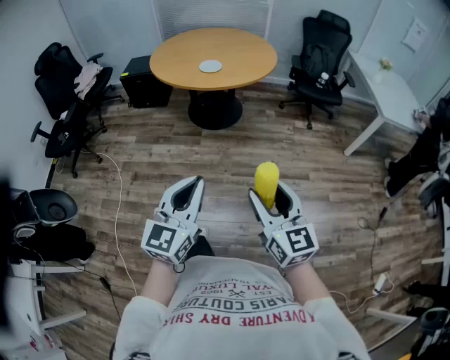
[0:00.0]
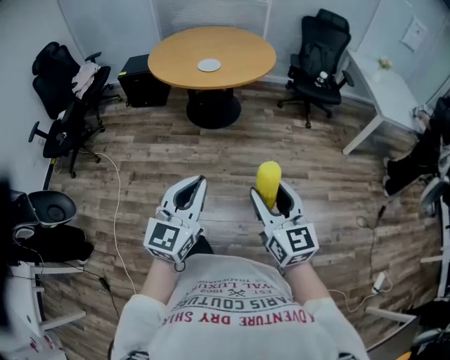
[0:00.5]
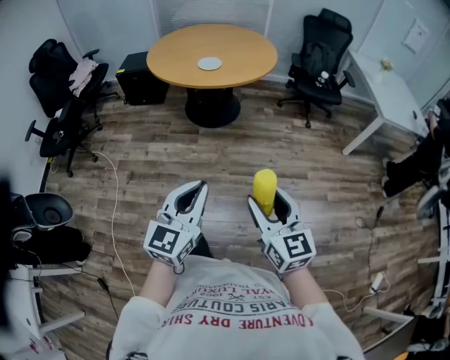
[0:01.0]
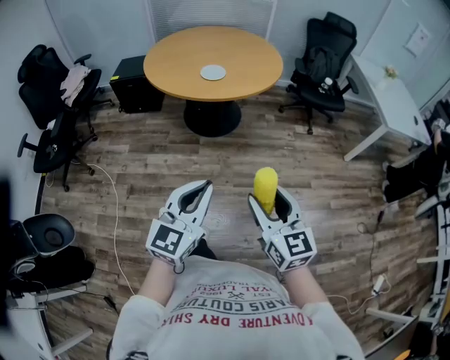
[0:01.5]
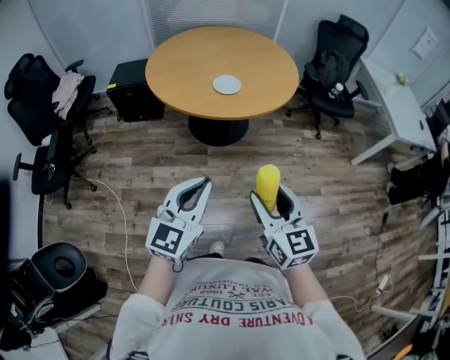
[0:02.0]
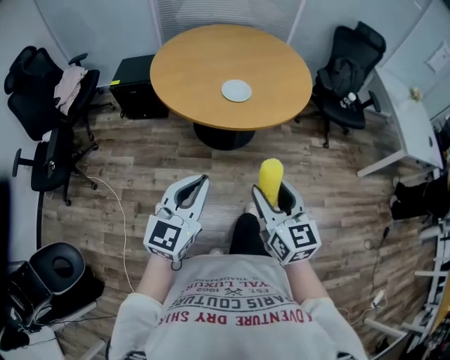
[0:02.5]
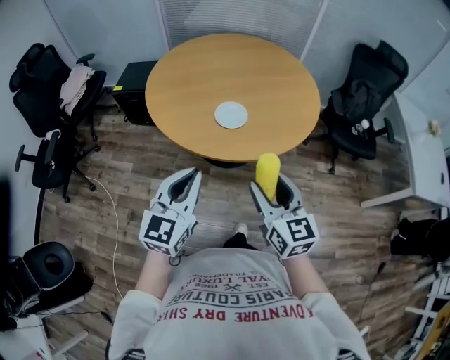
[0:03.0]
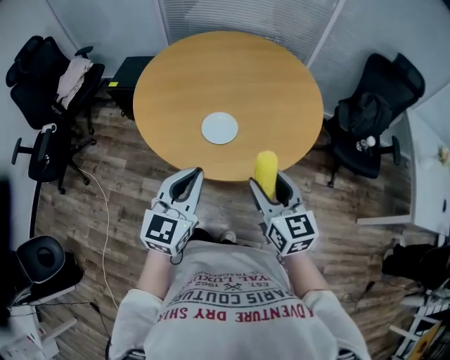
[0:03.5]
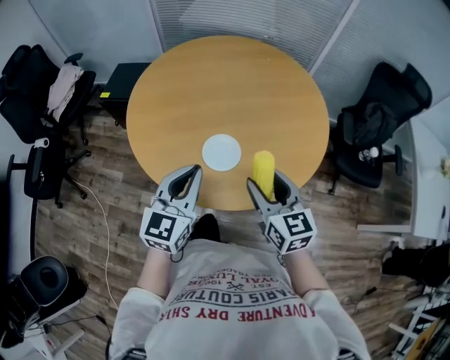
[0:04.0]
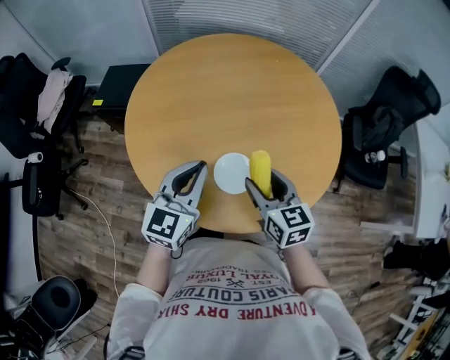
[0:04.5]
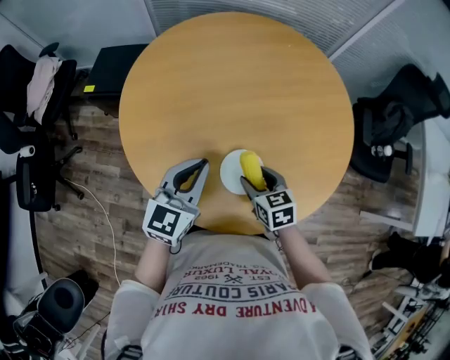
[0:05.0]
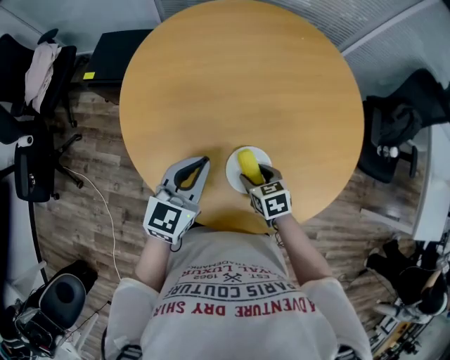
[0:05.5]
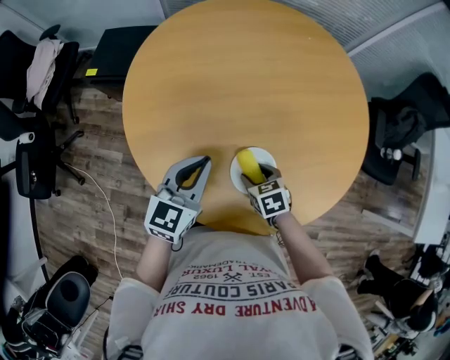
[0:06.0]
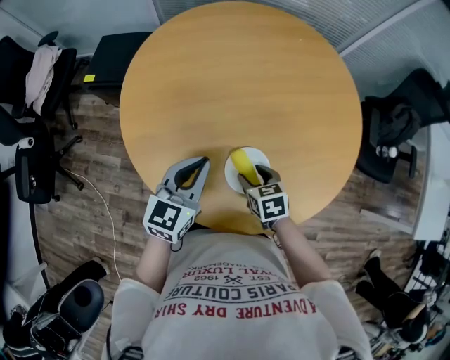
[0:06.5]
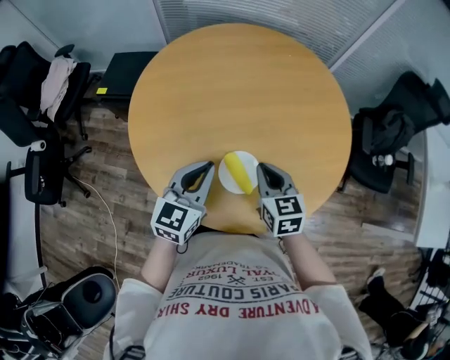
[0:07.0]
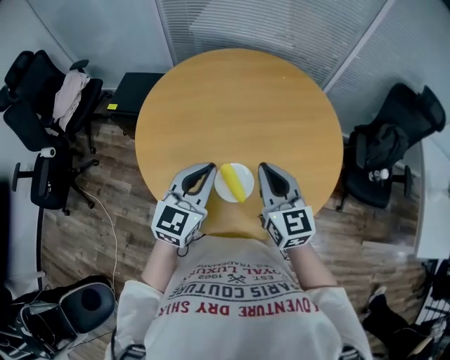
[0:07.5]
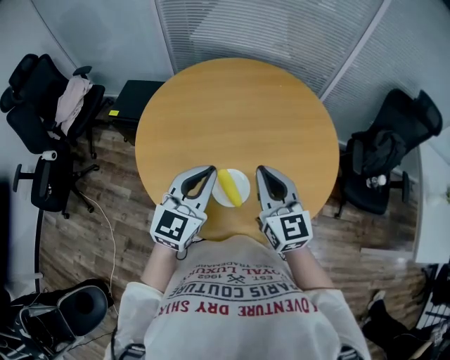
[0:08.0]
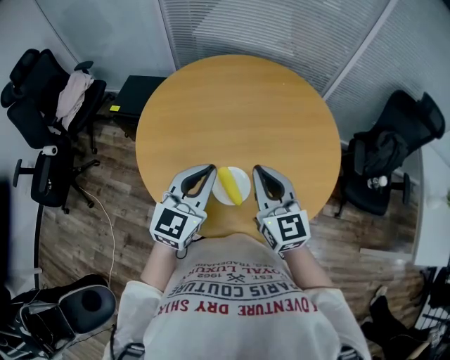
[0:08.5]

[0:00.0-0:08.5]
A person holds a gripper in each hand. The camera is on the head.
0:00.0 to 0:02.0: The two grippers go about 35 cm forward and to the left.
0:02.0 to 0:04.0: The two grippers travel together, forward, about 50 cm.
0:04.0 to 0:06.5: The left gripper is displaced forward and downward by about 20 cm. Meanwhile the right gripper travels downward and forward by about 30 cm, and tips its fingers downward by about 40 degrees.
0:06.5 to 0:08.5: The right gripper goes about 30 cm upward, angles its fingers upward, by some 50 degrees, and closes its fingers. Meanwhile the left gripper goes approximately 15 cm upward and to the right.

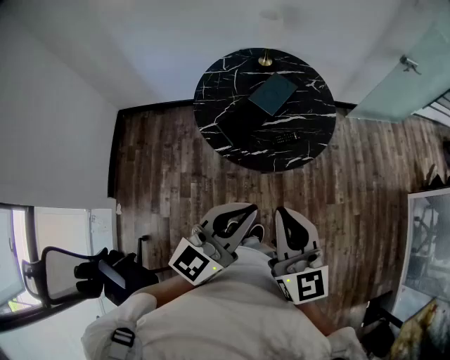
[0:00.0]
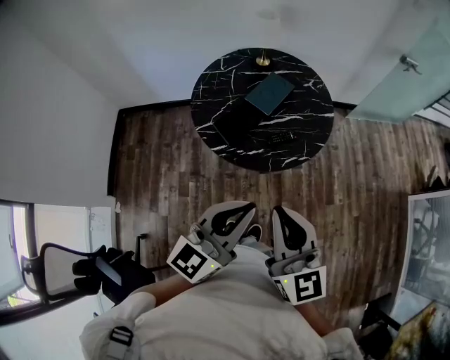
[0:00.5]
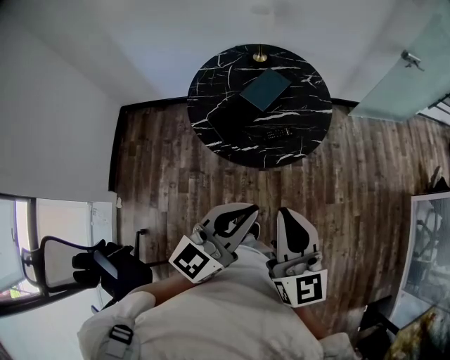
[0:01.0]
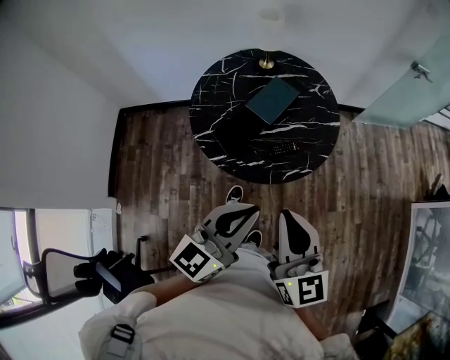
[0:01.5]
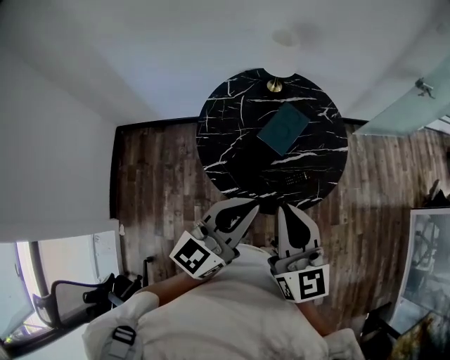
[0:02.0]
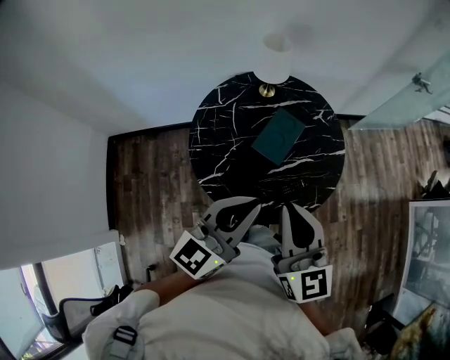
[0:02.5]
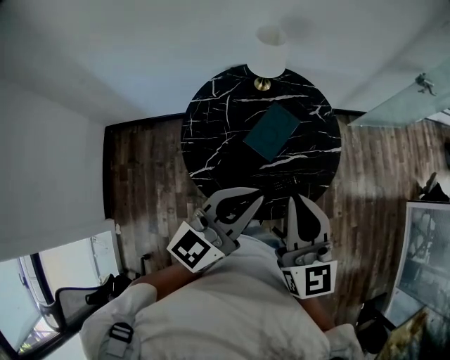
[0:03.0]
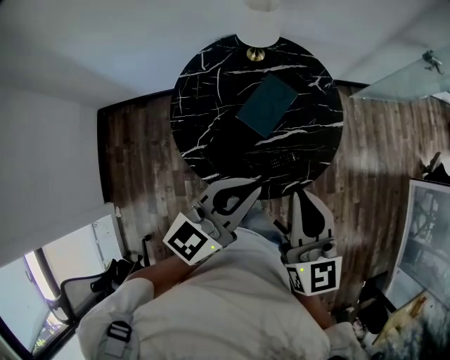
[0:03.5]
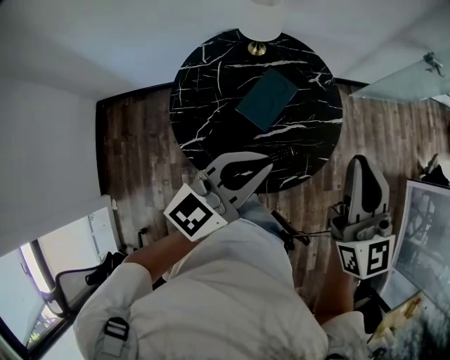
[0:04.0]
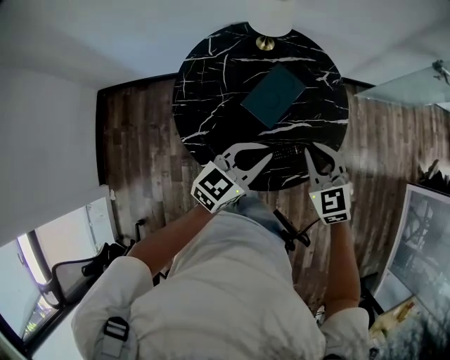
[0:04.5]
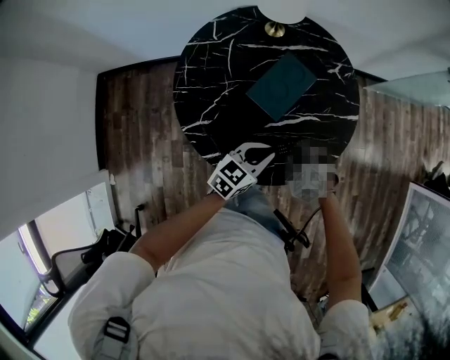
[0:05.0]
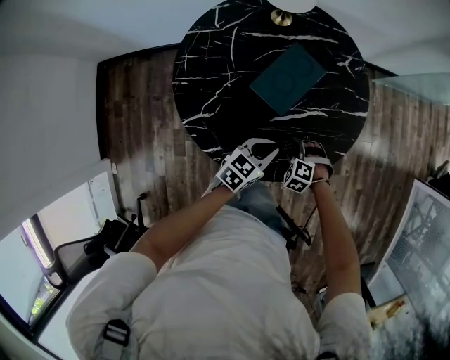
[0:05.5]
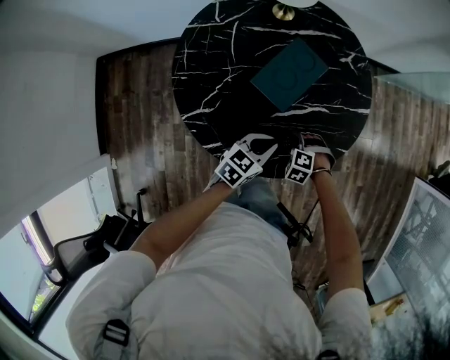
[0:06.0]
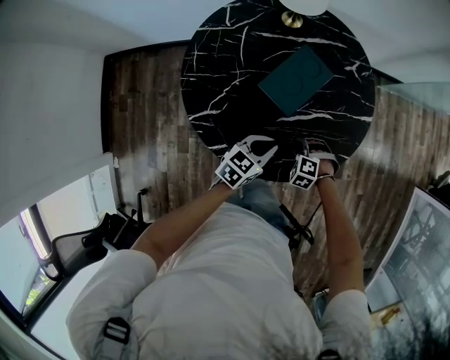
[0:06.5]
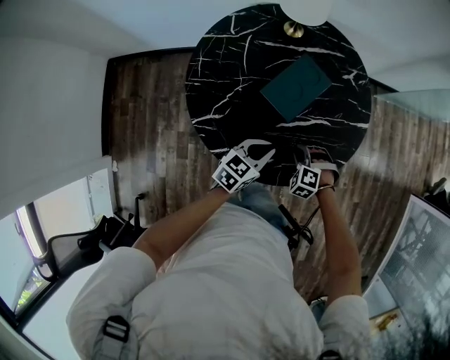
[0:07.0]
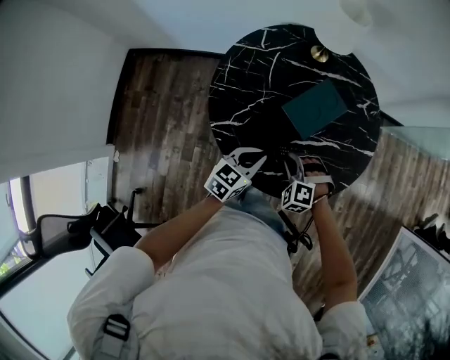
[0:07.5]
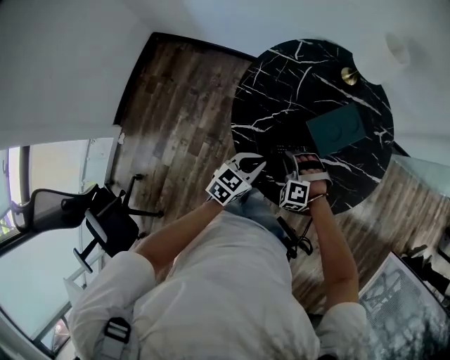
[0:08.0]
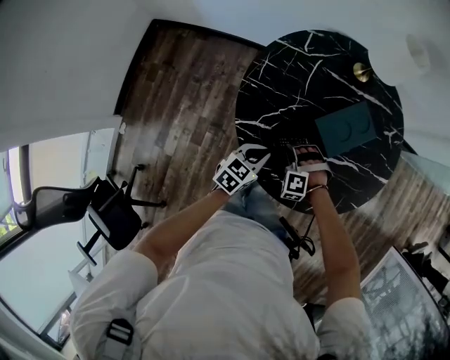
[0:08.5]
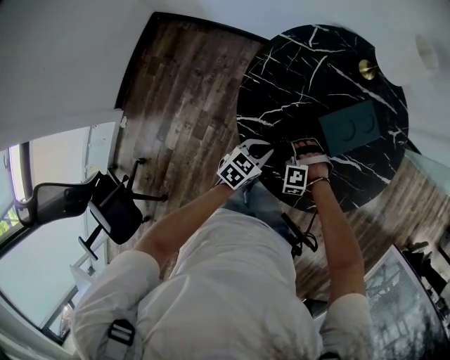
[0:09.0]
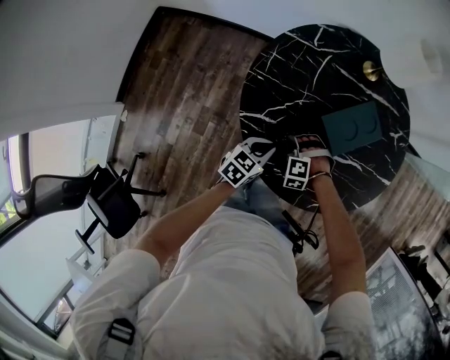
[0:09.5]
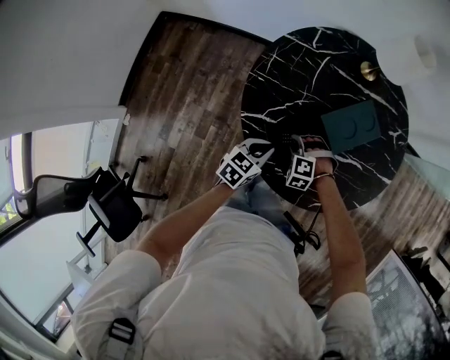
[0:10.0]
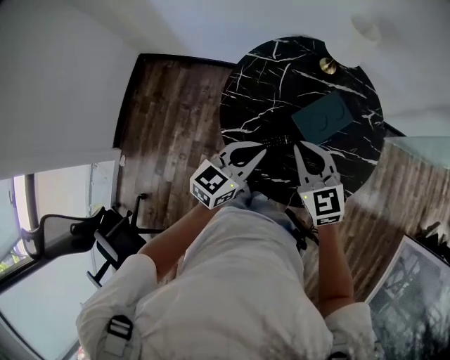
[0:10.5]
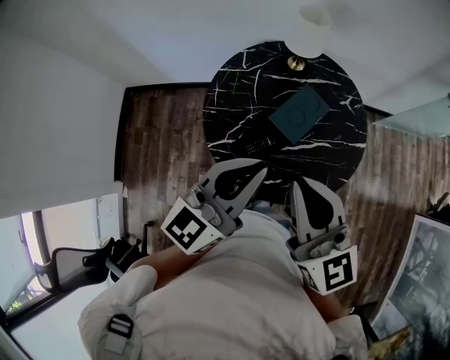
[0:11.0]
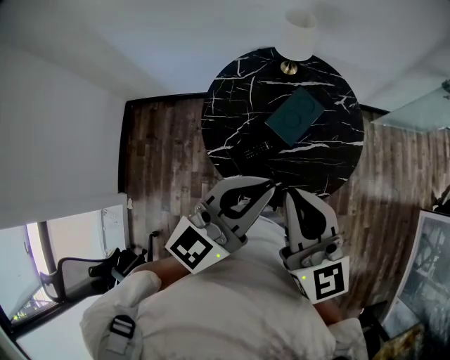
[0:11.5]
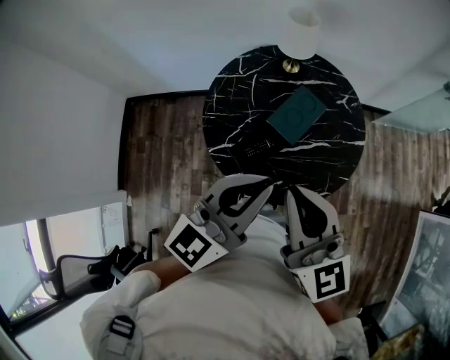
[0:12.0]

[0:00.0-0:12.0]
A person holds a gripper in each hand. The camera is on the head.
0:00.0 to 0:02.0: The grippers both shift forward by about 20 cm.
0:02.0 to 0:04.0: The grippers both shift forward and to the right by some 20 cm.
0:04.0 to 0:06.0: The left gripper moves downward, some 35 cm, and points its fingers approximately 30 degrees further downward, while the right gripper heads downward, covering some 60 cm, tilts its fingers approximately 80 degrees downward, and opens its fingers.
0:06.0 to 0:08.0: The right gripper ends up some 25 cm from where it was, swivels approximately 40 degrees, and closes up. Meanwhile the left gripper moves roughly 20 cm, and changes its angle by roughly 20 degrees.
0:08.0 to 0:10.0: The grippers both shift downward by approximately 5 cm.
0:10.0 to 0:12.0: Both grippers travel together upward, some 50 cm. The left gripper tilts its fingers approximately 40 degrees upward. Meanwhile the right gripper tilts its fingers approximately 70 degrees upward, and closes.

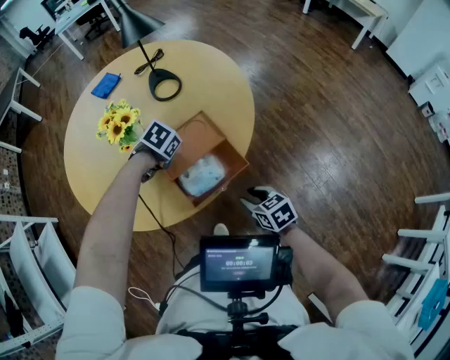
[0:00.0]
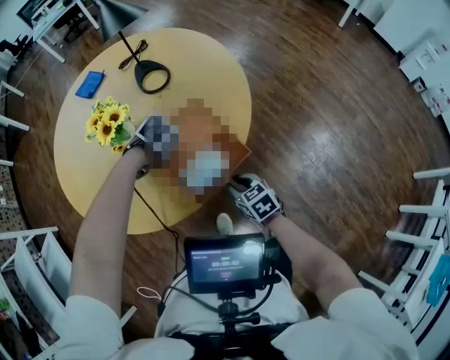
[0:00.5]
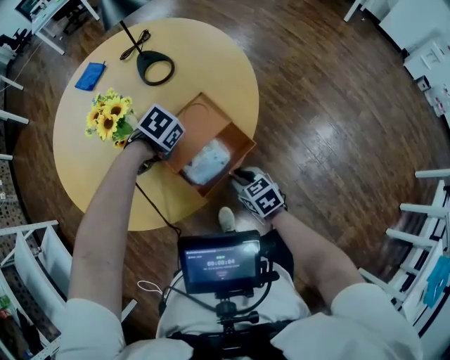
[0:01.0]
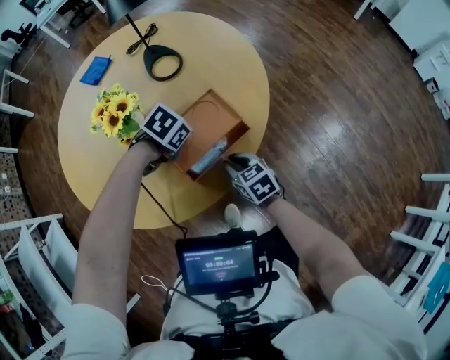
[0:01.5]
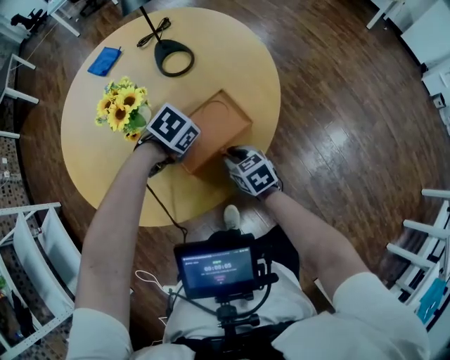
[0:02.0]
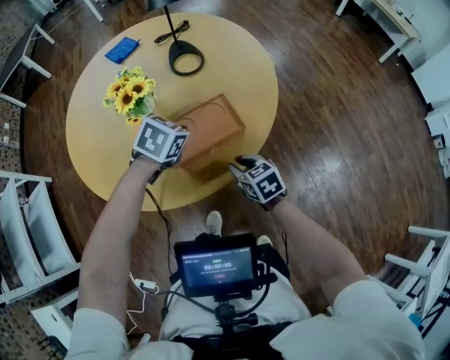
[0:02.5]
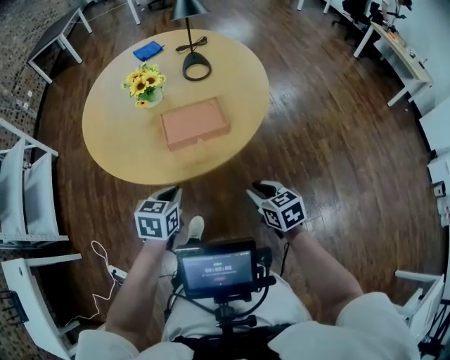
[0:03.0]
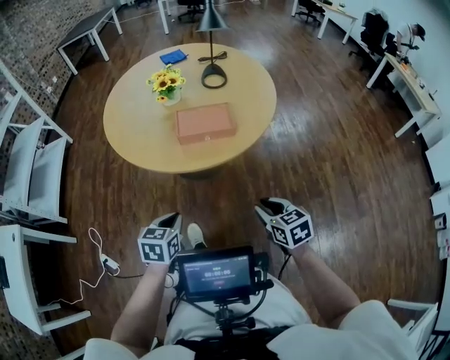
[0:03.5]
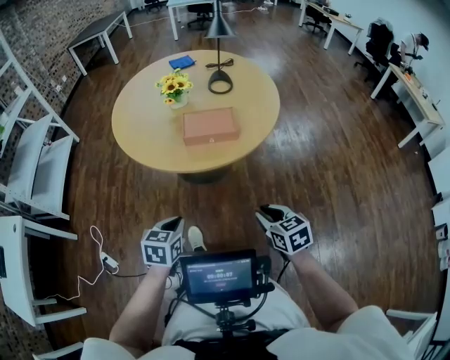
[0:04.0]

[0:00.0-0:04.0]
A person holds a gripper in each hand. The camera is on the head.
0:00.0 to 0:02.0: The right gripper travels to the left and forward by roughly 20 cm.
0:02.0 to 0:04.0: The right gripper shifts by some 40 cm, and swivels approximately 20 degrees; the left gripper moves approximately 40 cm, and angles its fingers upward, by about 30 degrees.

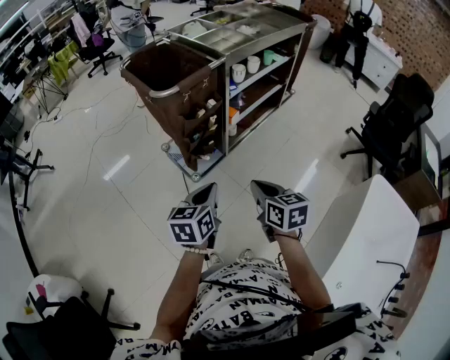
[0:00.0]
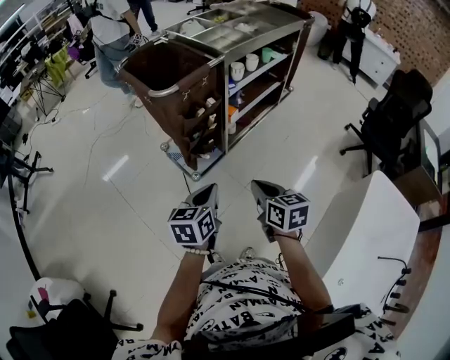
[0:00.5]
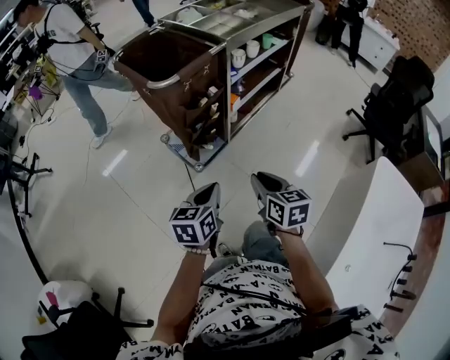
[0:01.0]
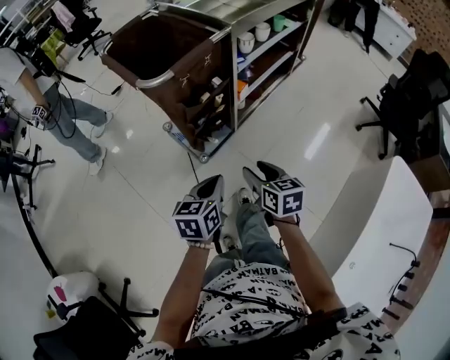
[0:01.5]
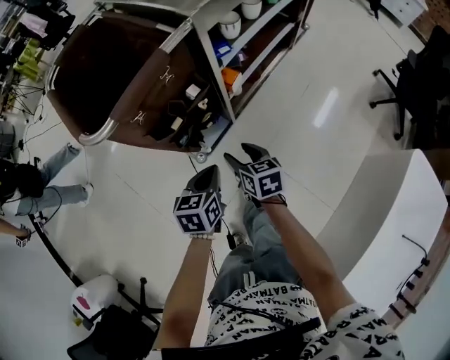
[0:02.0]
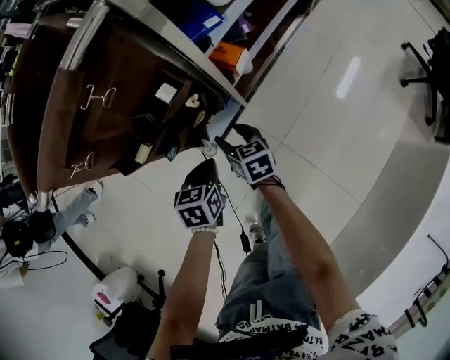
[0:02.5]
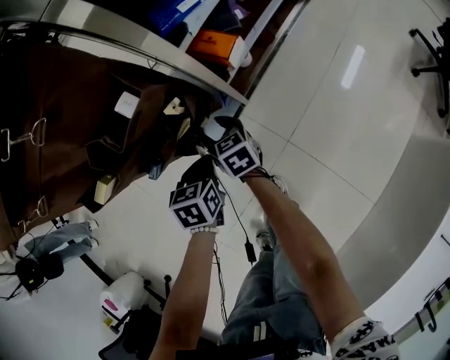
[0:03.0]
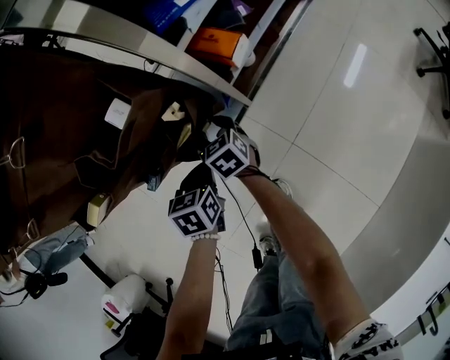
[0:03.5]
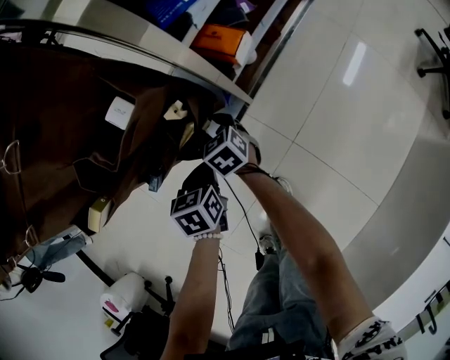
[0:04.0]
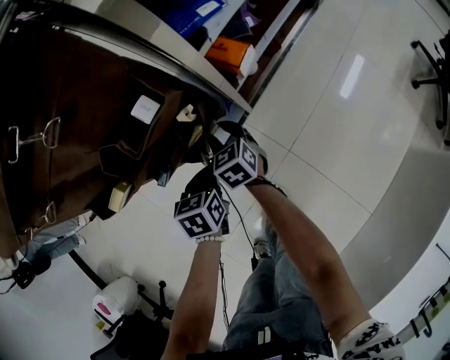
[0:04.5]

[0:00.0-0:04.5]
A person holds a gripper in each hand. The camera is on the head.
0:00.0 to 0:02.0: The grippers both shift forward and downward by approximately 30 cm. The right gripper opens.
0:02.0 to 0:04.5: Both grippers move downward and forward, some 25 cm. The right gripper closes its fingers.
